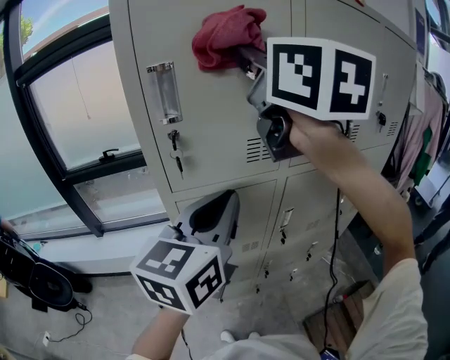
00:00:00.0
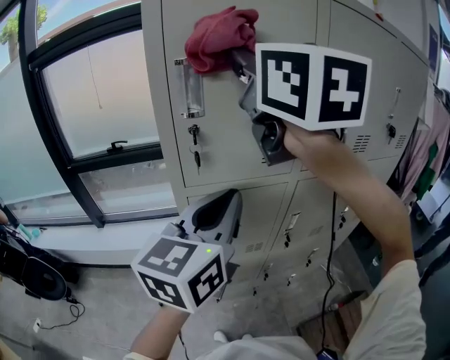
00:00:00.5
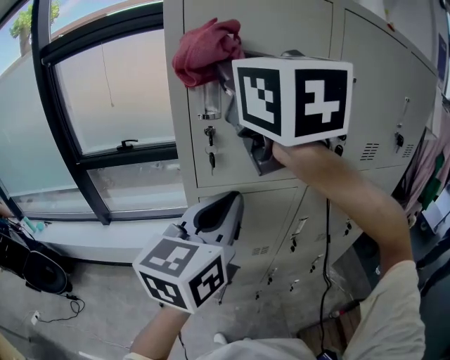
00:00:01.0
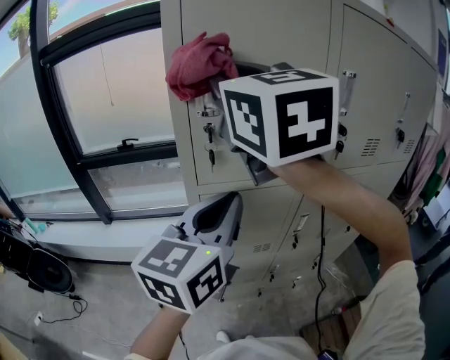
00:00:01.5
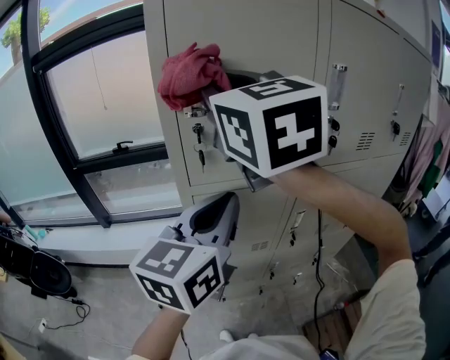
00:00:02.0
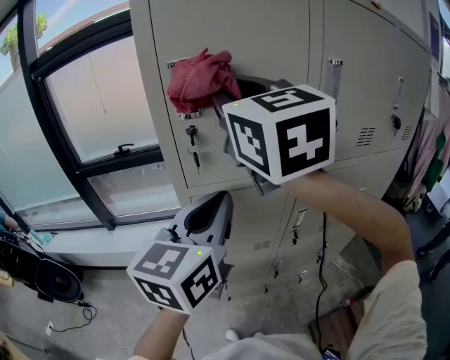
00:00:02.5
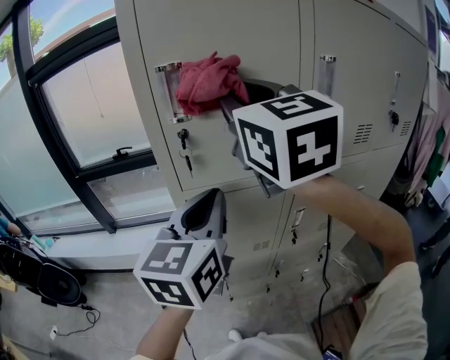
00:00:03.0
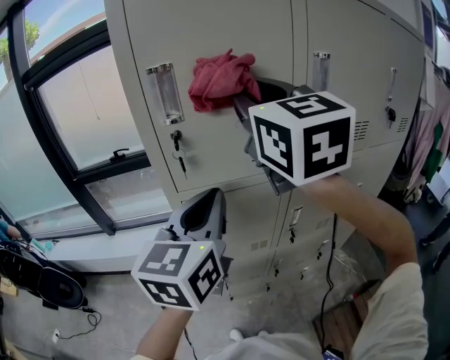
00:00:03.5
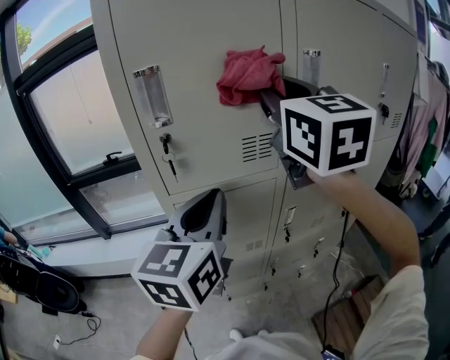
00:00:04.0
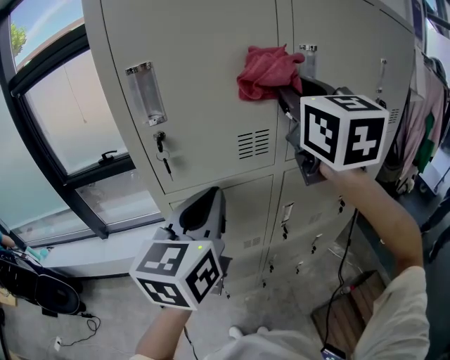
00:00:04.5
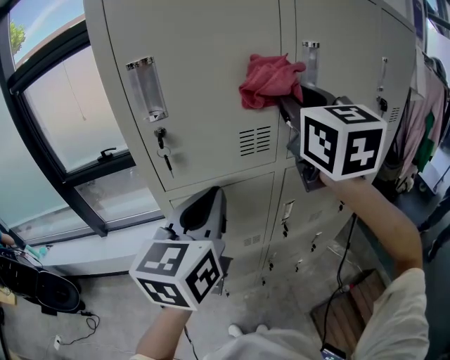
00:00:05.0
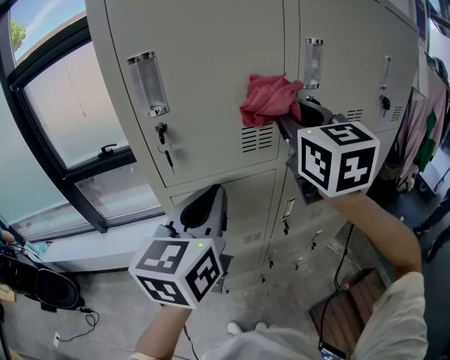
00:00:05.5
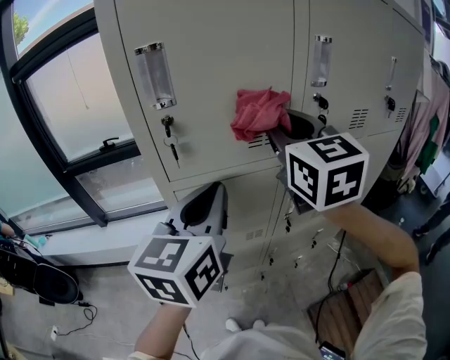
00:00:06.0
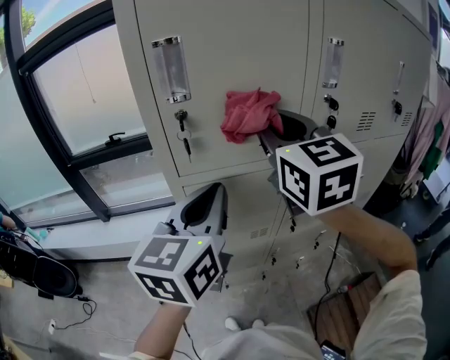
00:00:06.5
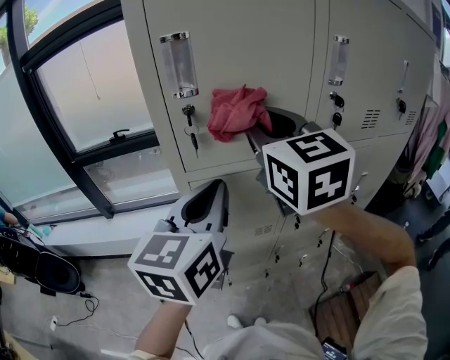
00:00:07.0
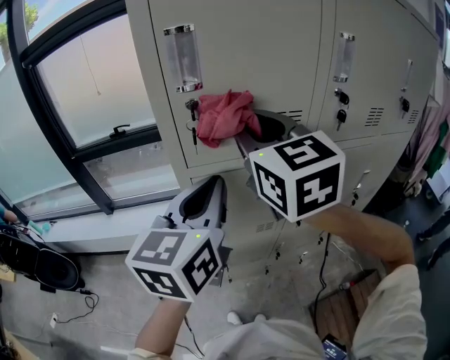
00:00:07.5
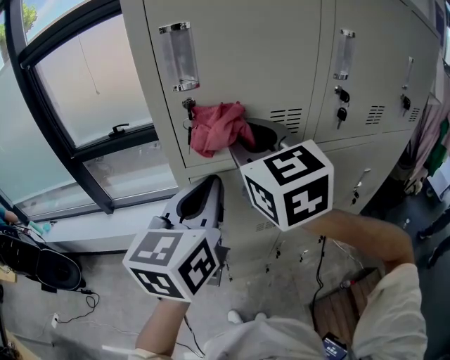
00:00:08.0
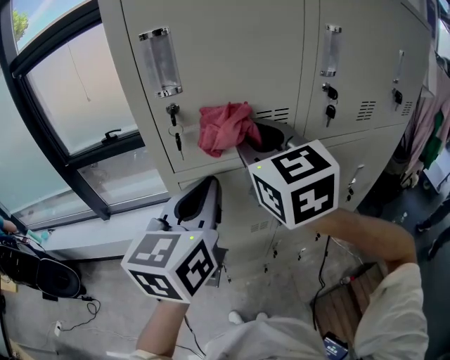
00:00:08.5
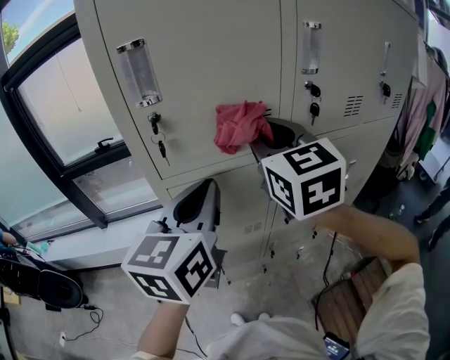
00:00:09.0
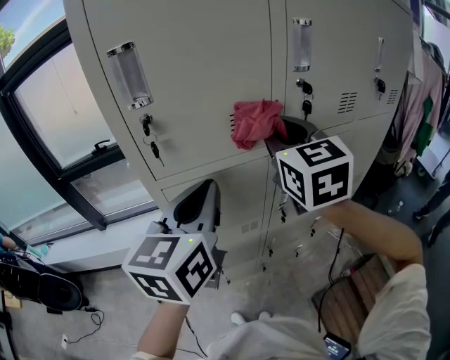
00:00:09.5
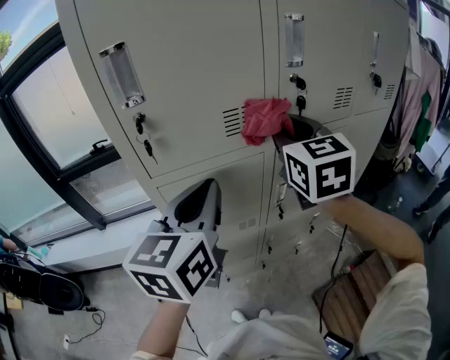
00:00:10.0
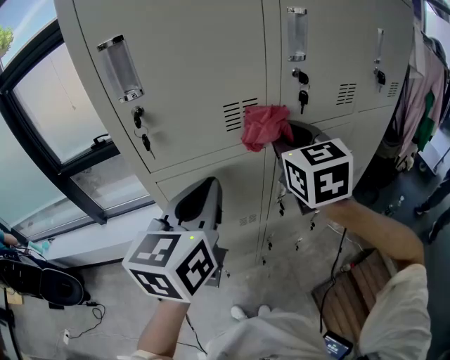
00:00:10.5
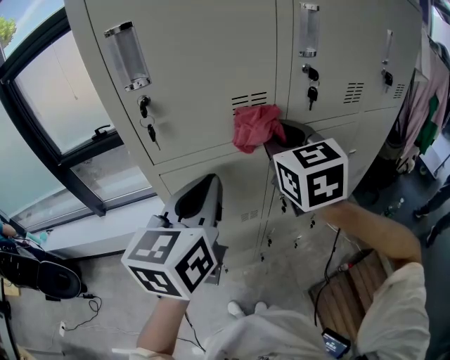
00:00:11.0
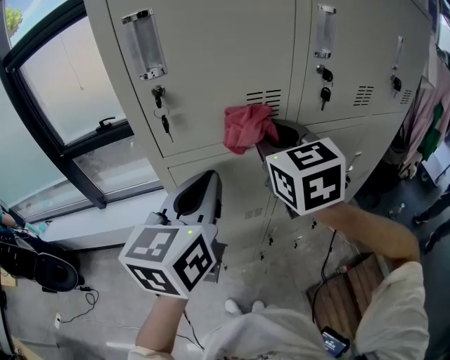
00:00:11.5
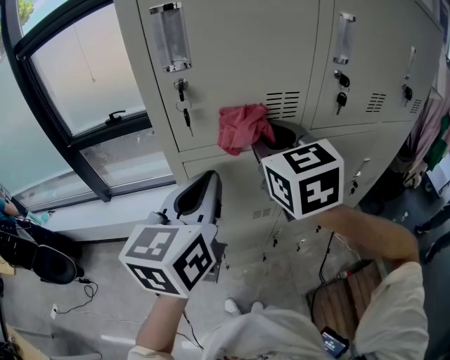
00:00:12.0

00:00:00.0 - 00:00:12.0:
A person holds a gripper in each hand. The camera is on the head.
00:00:00.0 - 00:00:02.0: The right gripper heads to the left and downward, covering approximately 10 cm.
00:00:02.0 - 00:00:04.0: The right gripper is displaced to the right by some 15 cm.
00:00:04.0 - 00:00:06.0: The right gripper is displaced downward by about 10 cm.
00:00:06.0 - 00:00:08.0: The right gripper moves to the left, some 10 cm.
00:00:08.0 - 00:00:10.0: The right gripper is displaced to the right by roughly 20 cm, while the left gripper goes approximately 5 cm to the right.
00:00:10.0 - 00:00:12.0: The left gripper is displaced to the left by about 5 cm. Meanwhile the right gripper moves to the left, some 10 cm.

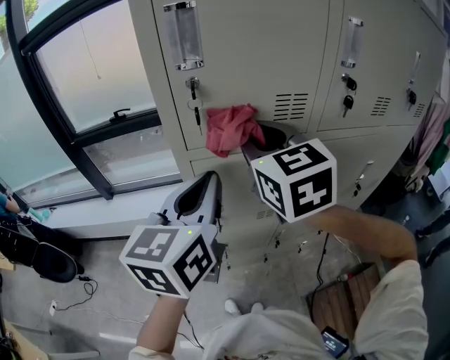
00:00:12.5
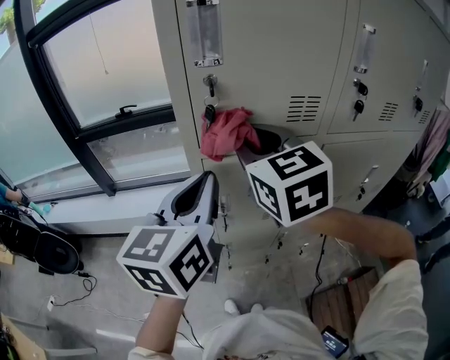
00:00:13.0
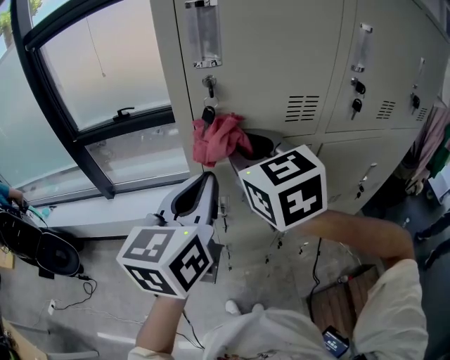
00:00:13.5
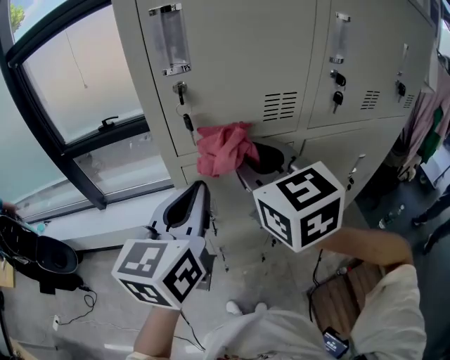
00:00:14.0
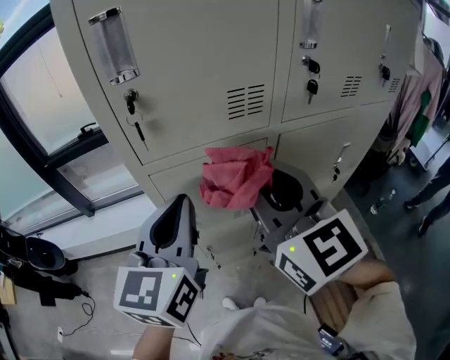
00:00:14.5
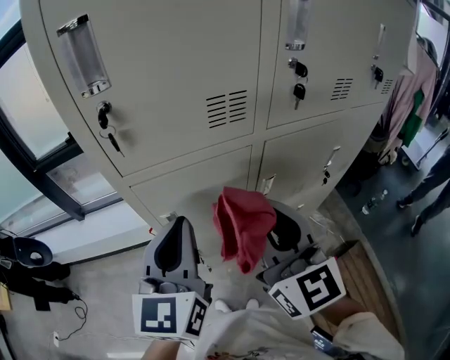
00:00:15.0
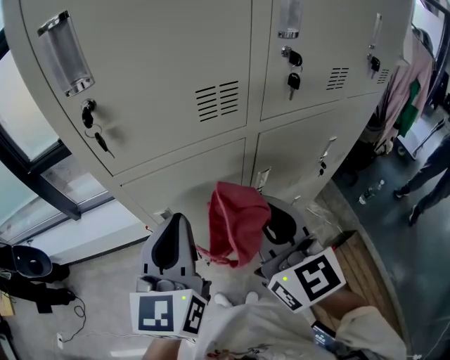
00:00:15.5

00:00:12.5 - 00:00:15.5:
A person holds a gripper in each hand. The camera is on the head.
00:00:12.5 - 00:00:14.0: There are only small adjustments of the grippers.
00:00:14.0 - 00:00:15.5: The left gripper is displaced to the right by roughly 5 cm, while the right gripper heads to the right, downward and backward, covering about 15 cm.

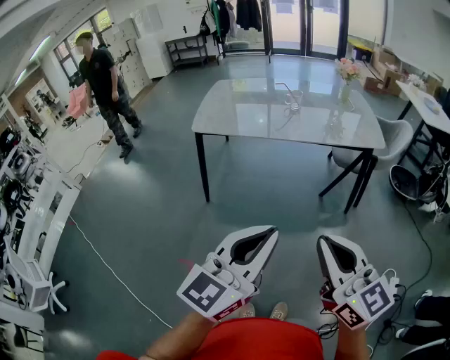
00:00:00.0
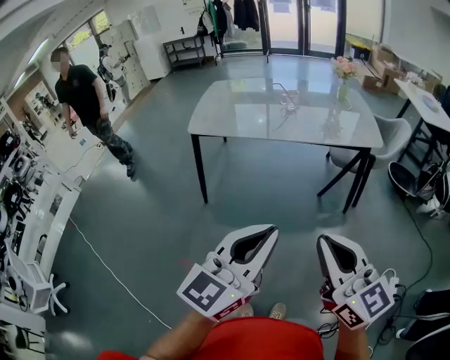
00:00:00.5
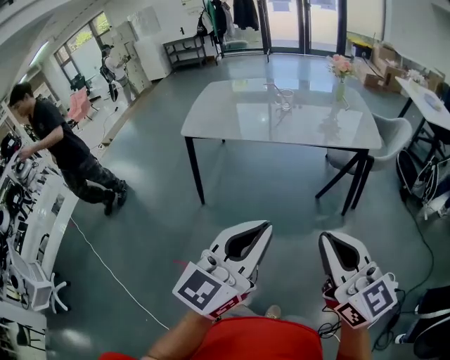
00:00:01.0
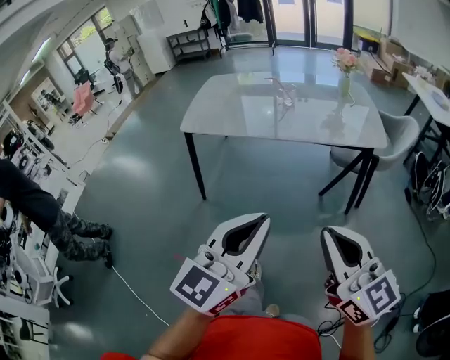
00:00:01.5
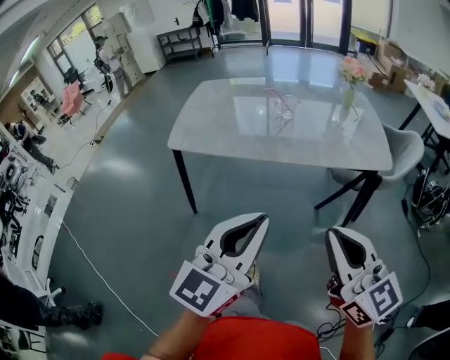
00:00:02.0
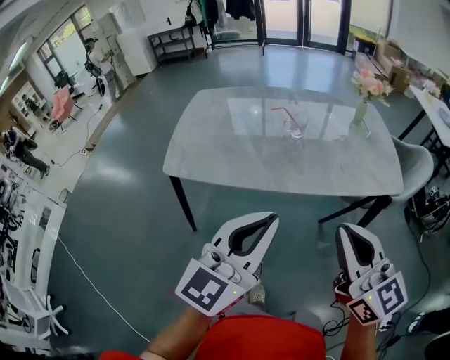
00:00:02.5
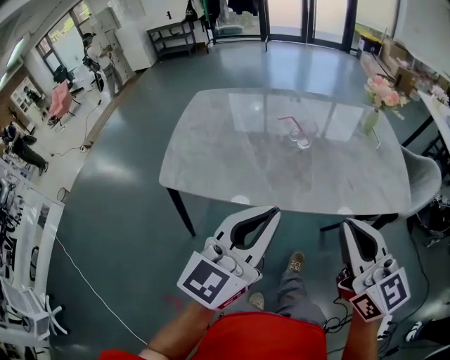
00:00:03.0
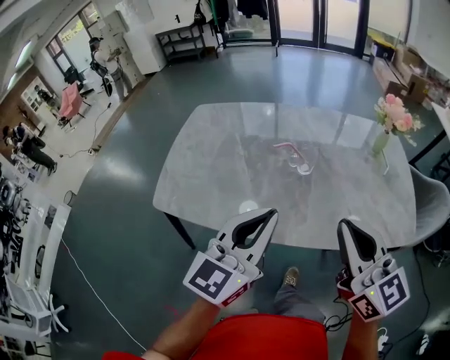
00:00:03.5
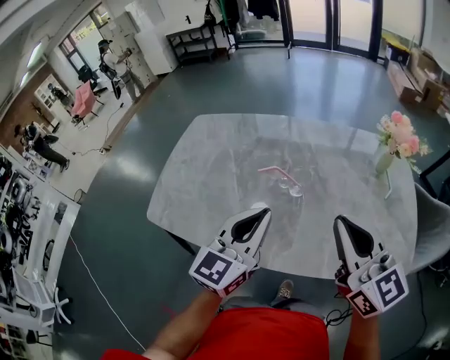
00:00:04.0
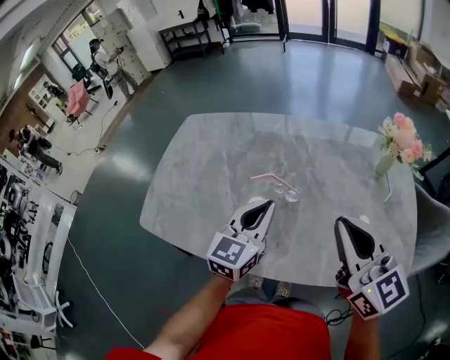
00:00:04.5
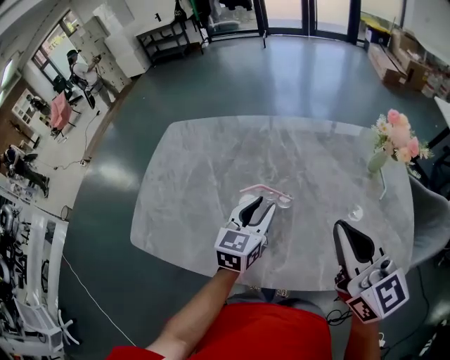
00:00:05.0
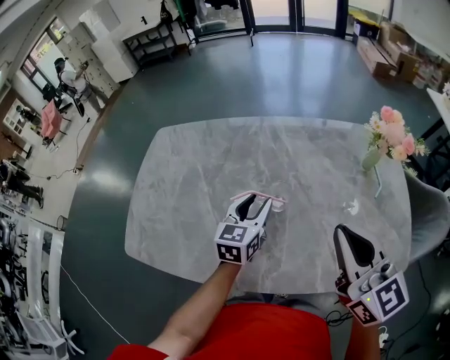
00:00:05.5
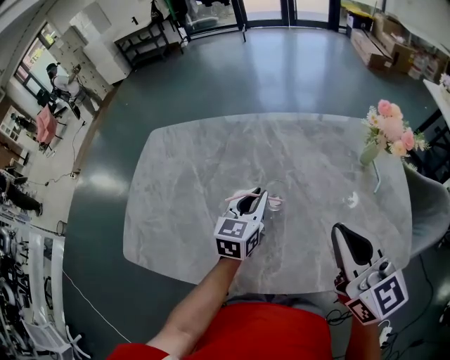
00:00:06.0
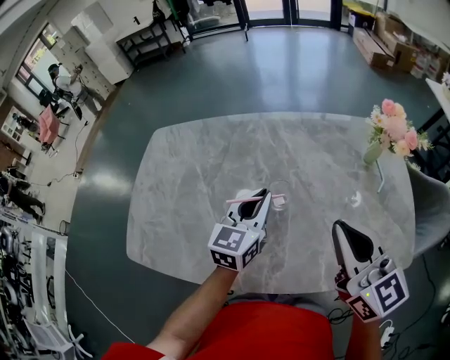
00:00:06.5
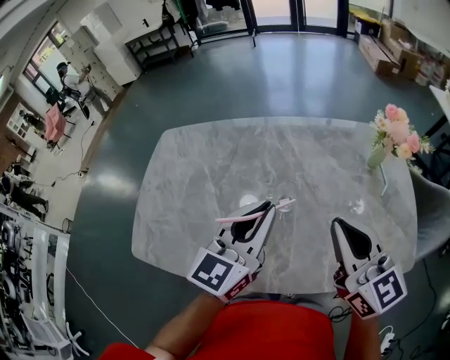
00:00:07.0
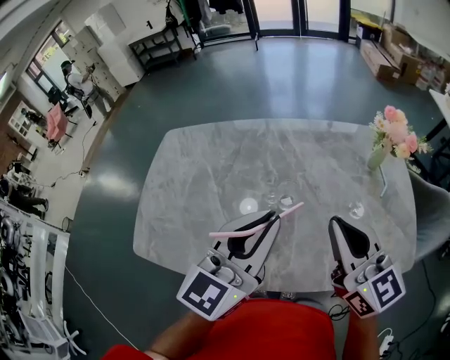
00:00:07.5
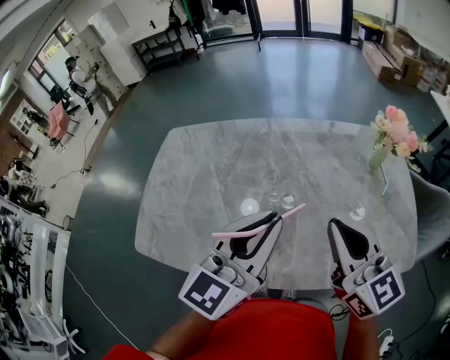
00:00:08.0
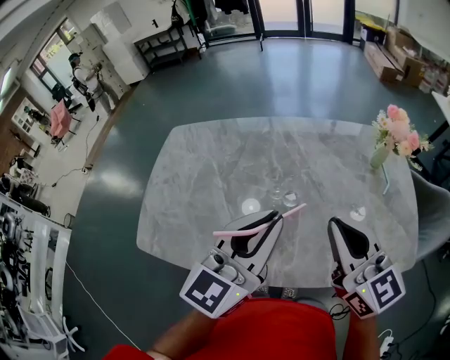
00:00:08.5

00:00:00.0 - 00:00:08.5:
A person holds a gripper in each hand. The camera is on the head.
00:00:00.0 - 00:00:02.0: Both grippers travel together forward, roughly 20 cm.
00:00:02.0 - 00:00:04.0: Both grippers are carried forward, about 50 cm.
00:00:04.0 - 00:00:06.5: The left gripper is displaced forward and downward by some 20 cm, and opens and closes again. The right gripper travels forward by roughly 10 cm.
00:00:06.5 - 00:00:08.5: The right gripper ends up about 5 cm from where it was; the left gripper goes approximately 20 cm upward and backward.

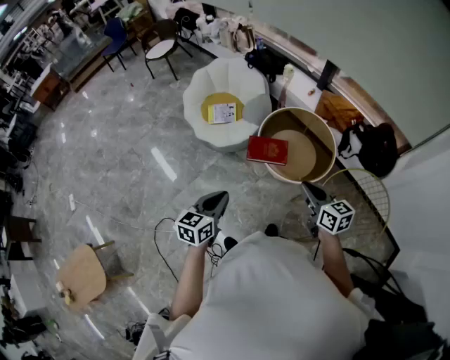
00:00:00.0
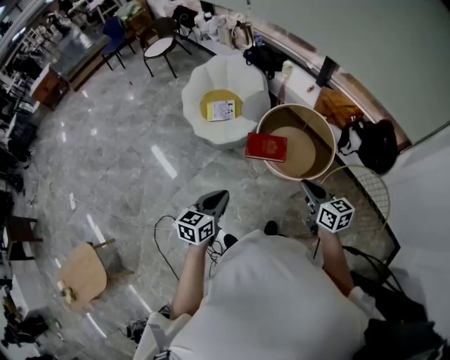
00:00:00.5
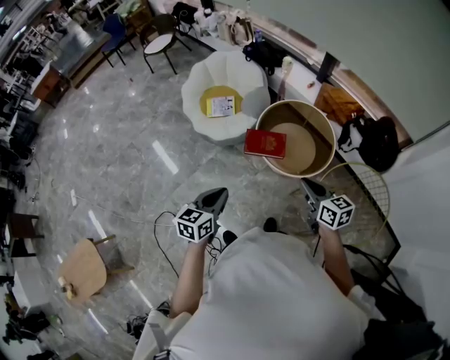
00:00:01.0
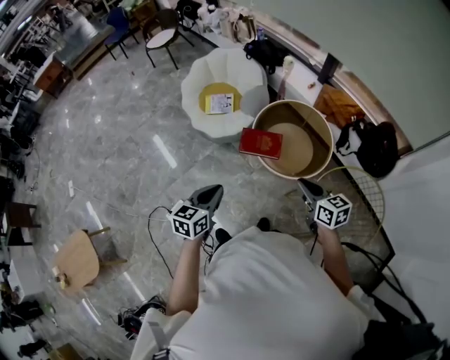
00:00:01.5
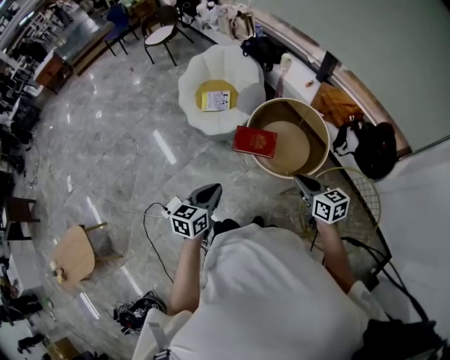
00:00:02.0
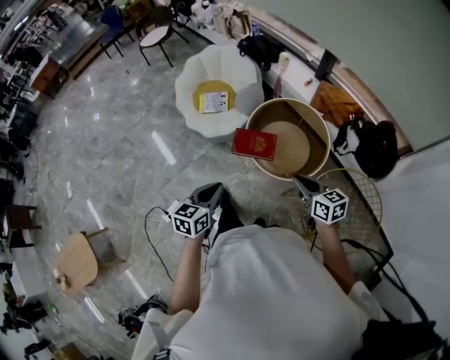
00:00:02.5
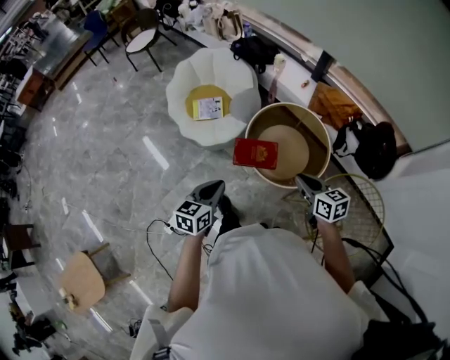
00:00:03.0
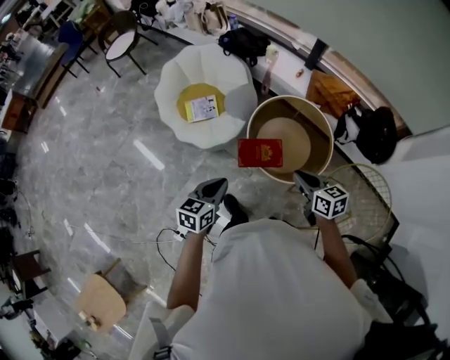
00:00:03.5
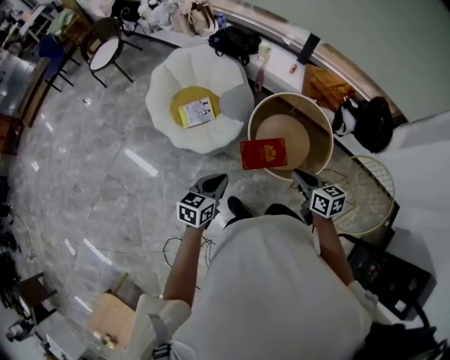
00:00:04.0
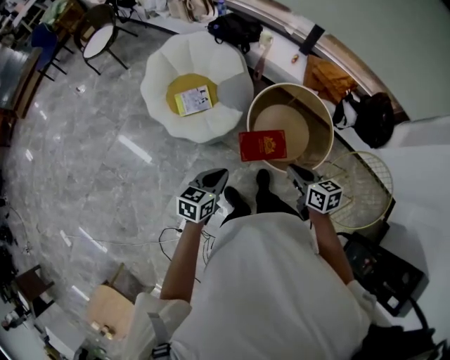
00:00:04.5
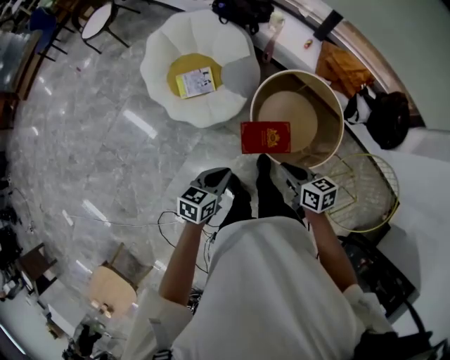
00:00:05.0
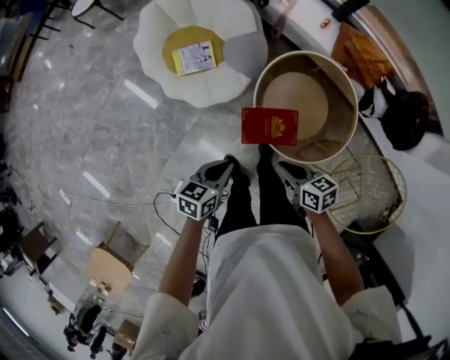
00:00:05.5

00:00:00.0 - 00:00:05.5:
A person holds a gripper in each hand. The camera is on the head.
00:00:00.0 - 00:00:02.0: The grippers both shift to the right by roughly 10 cm.
00:00:02.0 - 00:00:03.5: The left gripper is displaced forward by about 20 cm, while the right gripper is displaced forward and to the left by roughly 15 cm.
00:00:03.5 - 00:00:05.5: The right gripper travels downward and to the left by roughly 20 cm. Meanwhile the left gripper moves downward and forward, approximately 20 cm.
